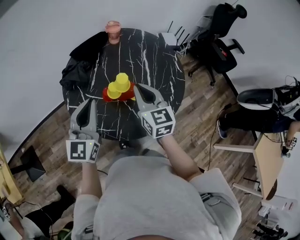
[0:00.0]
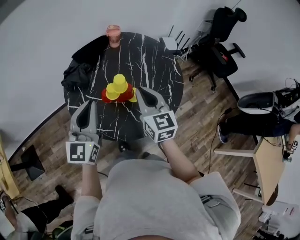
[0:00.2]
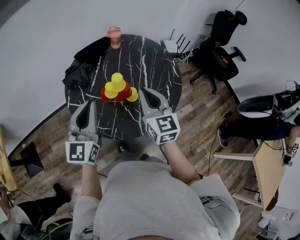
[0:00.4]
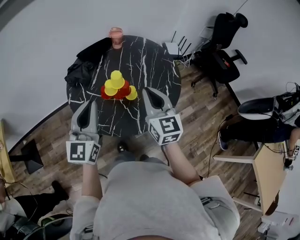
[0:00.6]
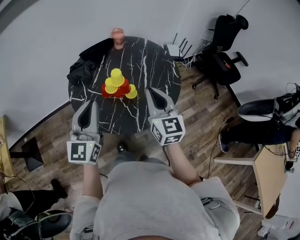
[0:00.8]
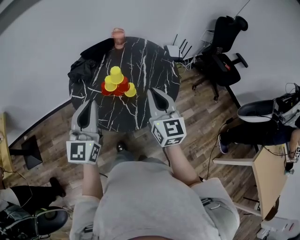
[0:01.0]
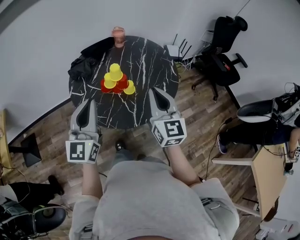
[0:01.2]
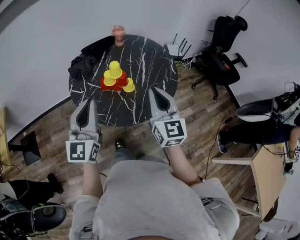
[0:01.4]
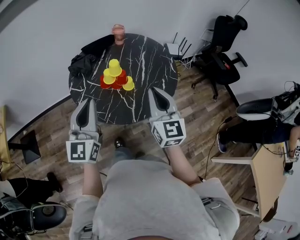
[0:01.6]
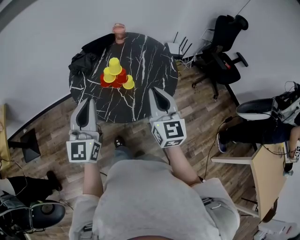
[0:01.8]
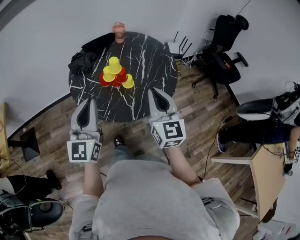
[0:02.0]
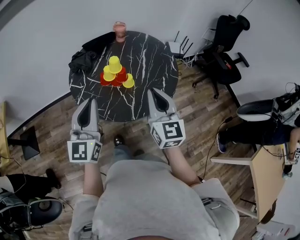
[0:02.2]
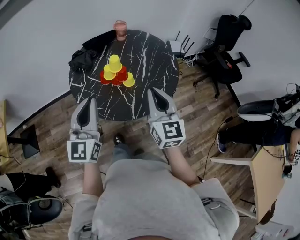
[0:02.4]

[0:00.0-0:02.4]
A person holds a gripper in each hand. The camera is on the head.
0:00.0 to 0:01.2: The right gripper moves backward, to the right and upward, roughly 20 cm. The left gripper goes some 15 cm backward and upward.
0:01.2 to 0:02.4: The grippers move only a little.

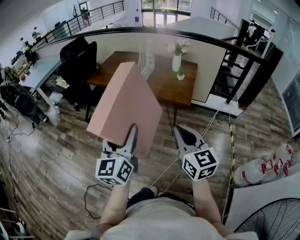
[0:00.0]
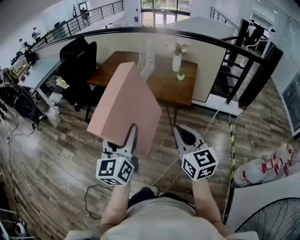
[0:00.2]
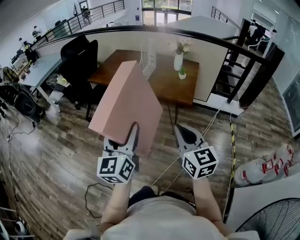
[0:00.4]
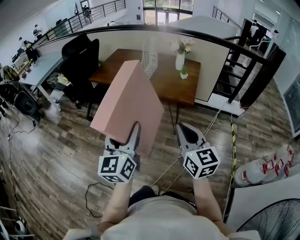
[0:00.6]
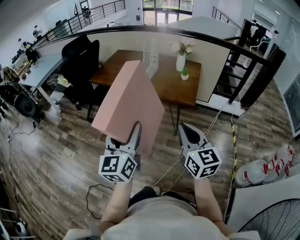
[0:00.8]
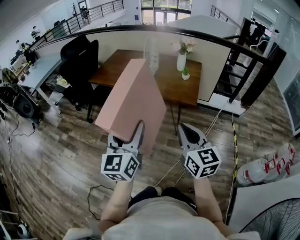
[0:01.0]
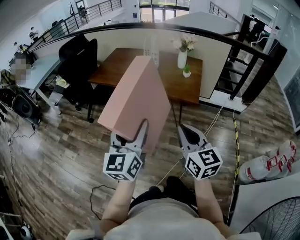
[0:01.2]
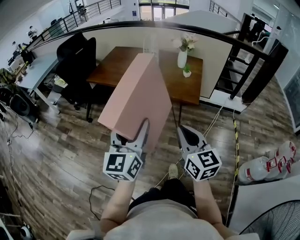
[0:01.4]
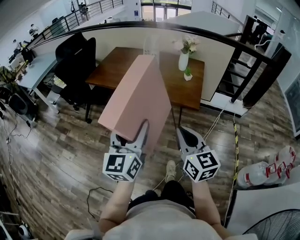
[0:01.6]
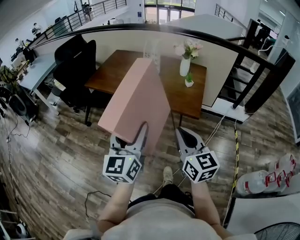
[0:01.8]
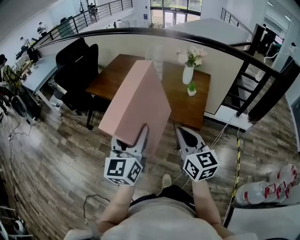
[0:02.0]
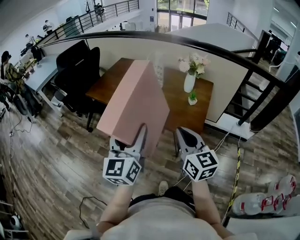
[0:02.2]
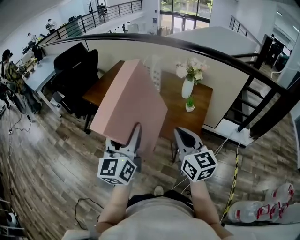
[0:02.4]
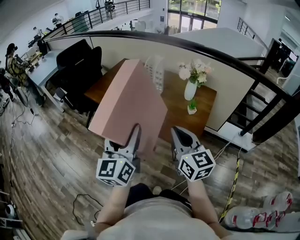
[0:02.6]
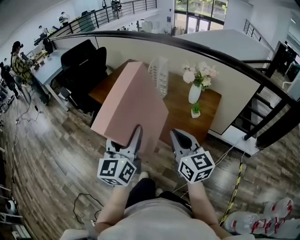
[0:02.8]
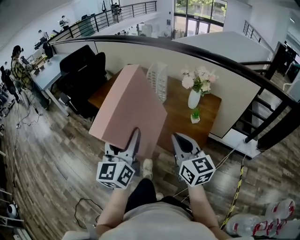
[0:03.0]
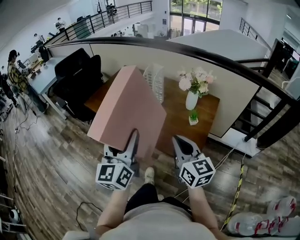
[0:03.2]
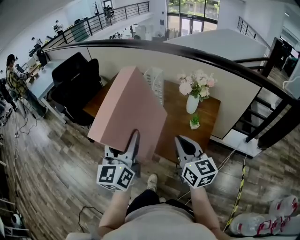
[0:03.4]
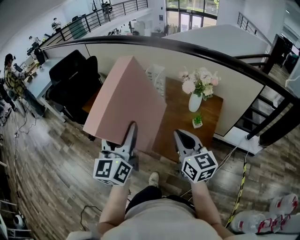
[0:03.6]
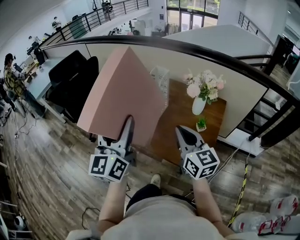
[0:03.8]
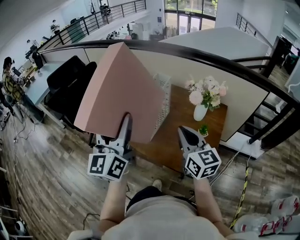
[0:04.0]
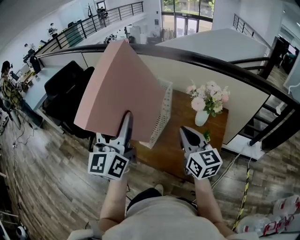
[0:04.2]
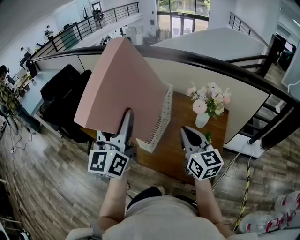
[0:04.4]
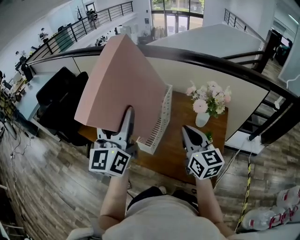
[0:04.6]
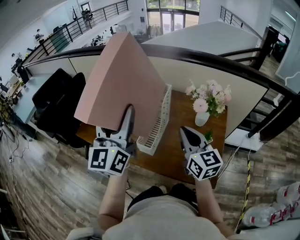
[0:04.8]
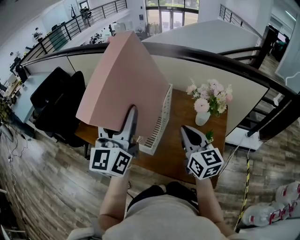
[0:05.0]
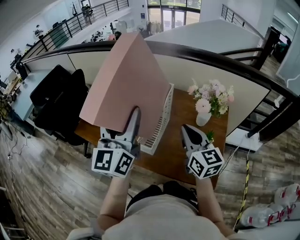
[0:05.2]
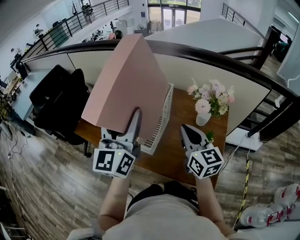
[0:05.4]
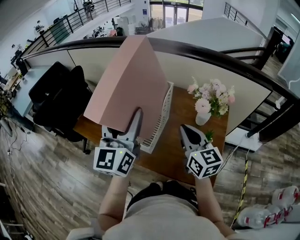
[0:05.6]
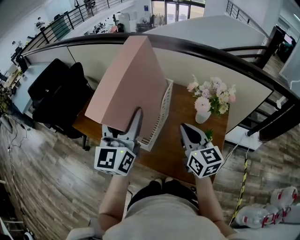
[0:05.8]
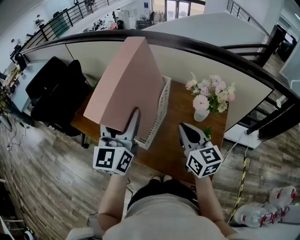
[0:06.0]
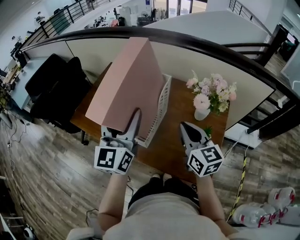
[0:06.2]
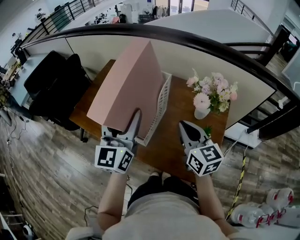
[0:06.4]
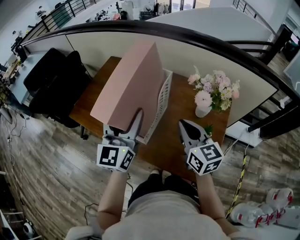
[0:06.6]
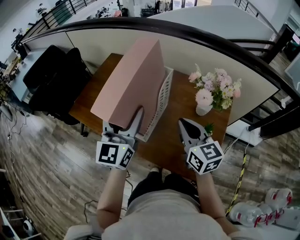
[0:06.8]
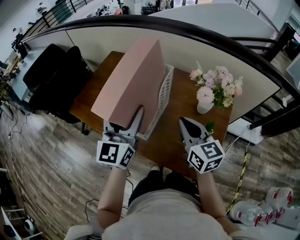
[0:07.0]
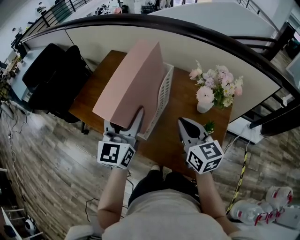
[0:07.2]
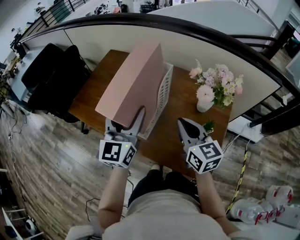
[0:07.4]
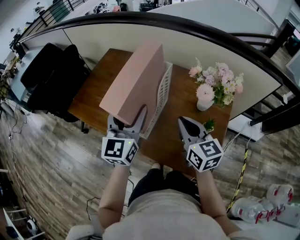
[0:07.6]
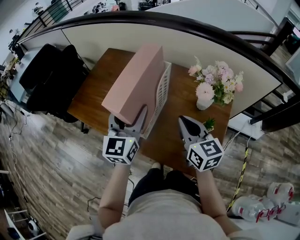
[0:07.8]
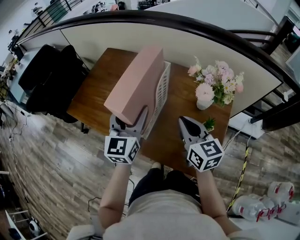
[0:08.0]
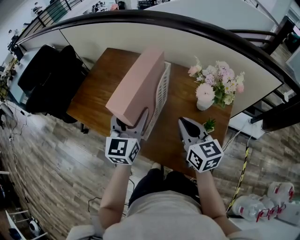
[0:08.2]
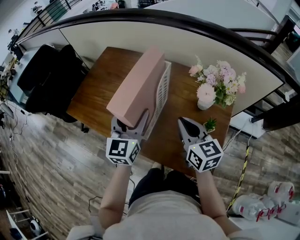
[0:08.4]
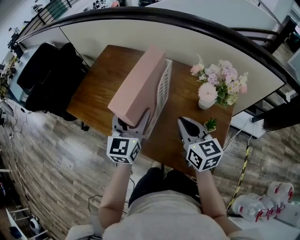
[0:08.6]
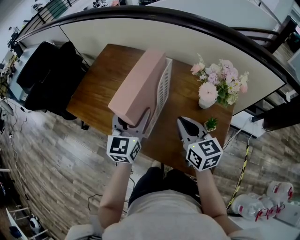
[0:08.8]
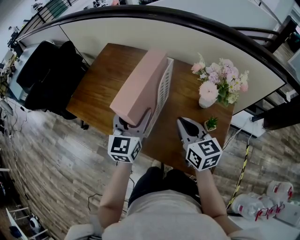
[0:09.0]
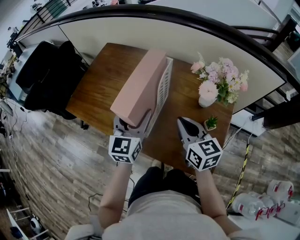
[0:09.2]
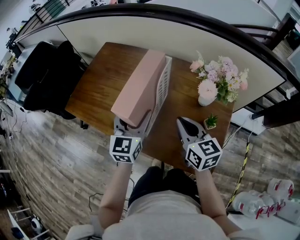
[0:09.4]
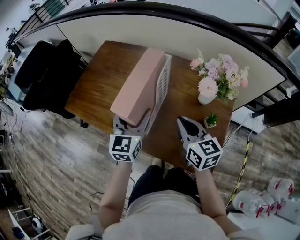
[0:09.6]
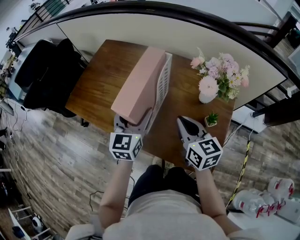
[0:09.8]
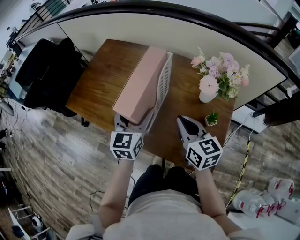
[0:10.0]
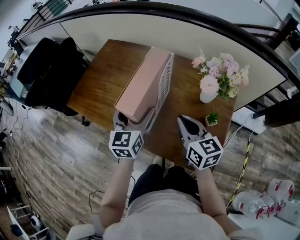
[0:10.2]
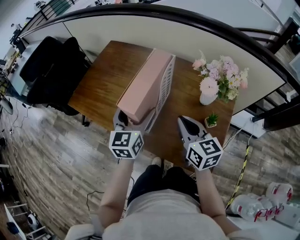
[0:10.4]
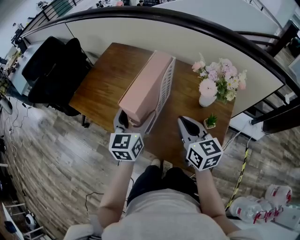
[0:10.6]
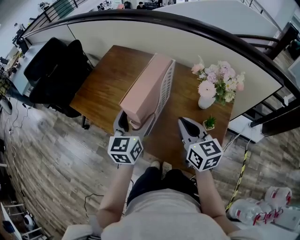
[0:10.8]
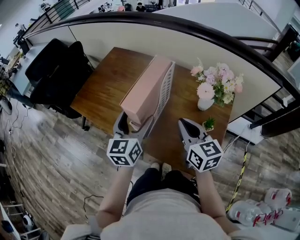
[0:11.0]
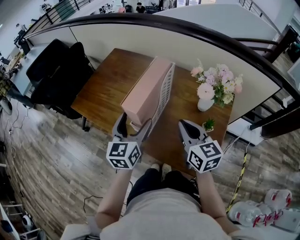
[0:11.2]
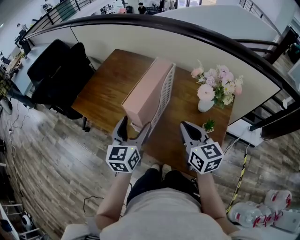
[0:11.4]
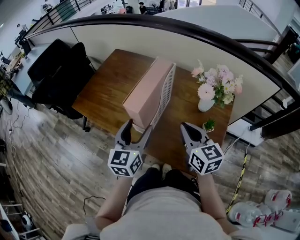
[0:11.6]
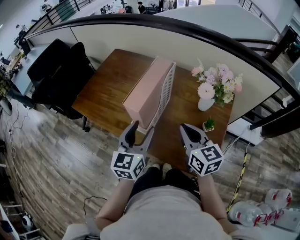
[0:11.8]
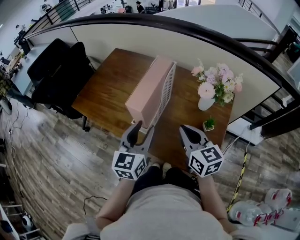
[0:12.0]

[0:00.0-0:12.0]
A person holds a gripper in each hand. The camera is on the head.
0:00.0 to 0:01.6: The grippers both shift forward by some 10 cm.
0:01.6 to 0:03.0: Both grippers travel together forward and to the right, some 25 cm.
0:03.0 to 0:04.4: The grippers both shift forward by approximately 25 cm.
0:04.4 to 0:06.0: The right gripper shifts by approximately 5 cm, while the left gripper heads forward and downward, covering some 10 cm.
0:06.0 to 0:07.6: The left gripper is displaced downward by roughly 10 cm.
0:07.6 to 0:09.0: The left gripper goes some 5 cm downward.
0:09.0 to 0:10.4: The grippers make only small movements.
0:10.4 to 0:12.0: The left gripper shifts about 10 cm backward, and closes up.

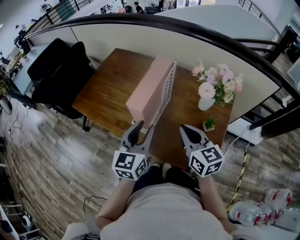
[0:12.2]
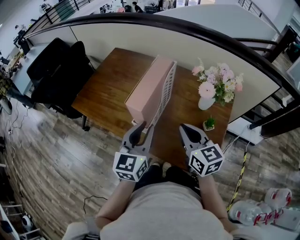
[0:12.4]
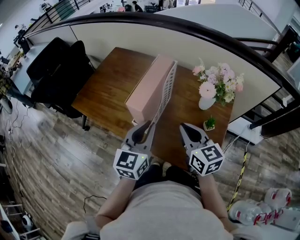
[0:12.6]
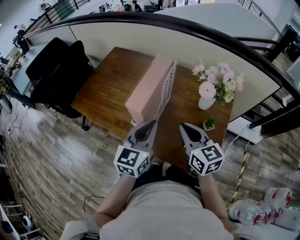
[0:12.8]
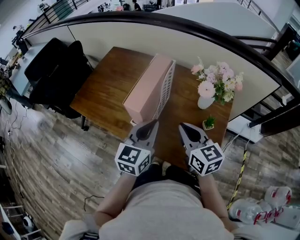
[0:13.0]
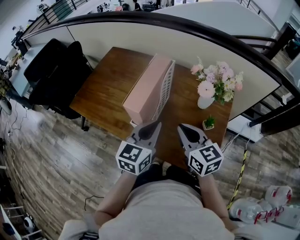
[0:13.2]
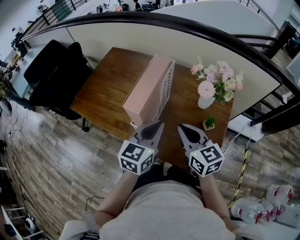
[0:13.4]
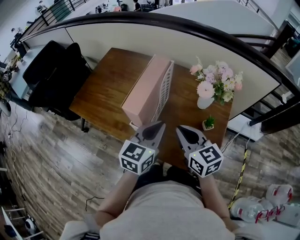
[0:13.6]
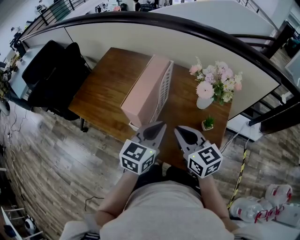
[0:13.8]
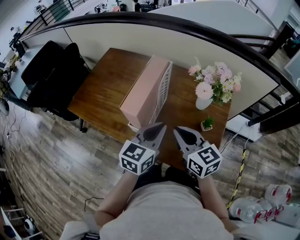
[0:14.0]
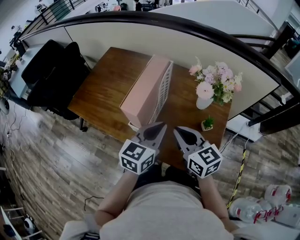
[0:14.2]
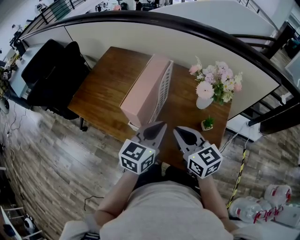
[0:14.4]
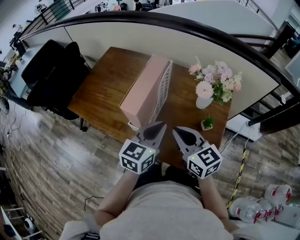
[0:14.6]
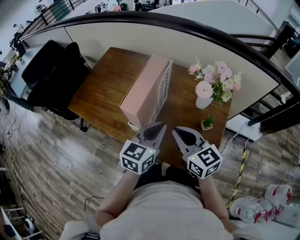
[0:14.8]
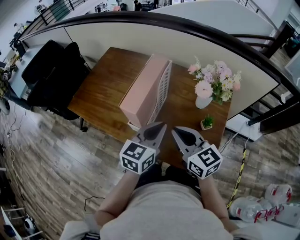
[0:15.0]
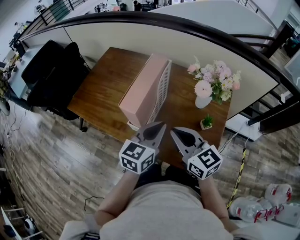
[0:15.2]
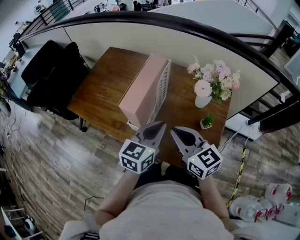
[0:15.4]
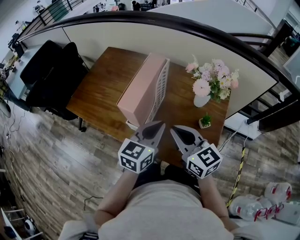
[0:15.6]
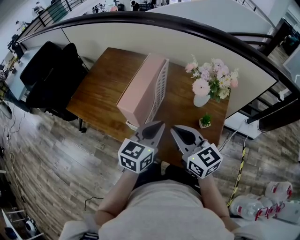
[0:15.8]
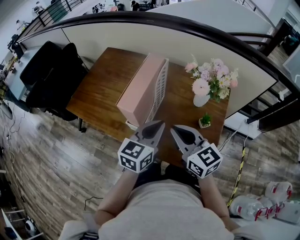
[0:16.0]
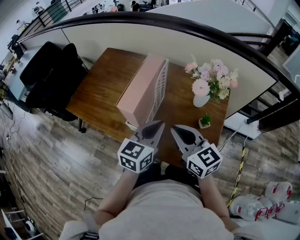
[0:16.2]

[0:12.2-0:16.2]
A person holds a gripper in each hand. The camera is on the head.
0:12.2 to 0:13.6: The left gripper goes roughly 5 cm to the right.
0:13.6 to 0:14.8: There are only small adjustments of the grippers.
0:14.8 to 0:16.2: Both grippers stay about where they are.

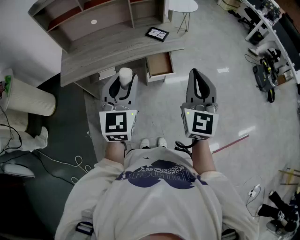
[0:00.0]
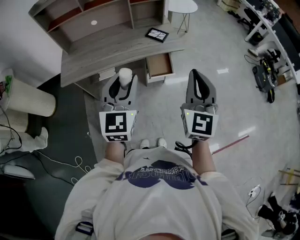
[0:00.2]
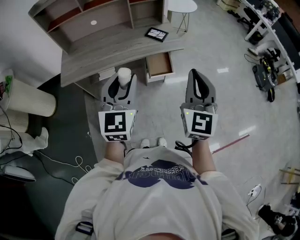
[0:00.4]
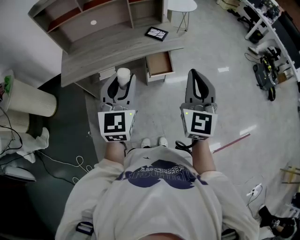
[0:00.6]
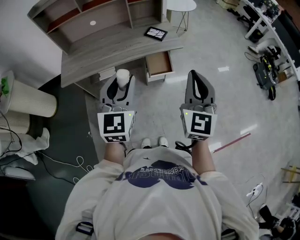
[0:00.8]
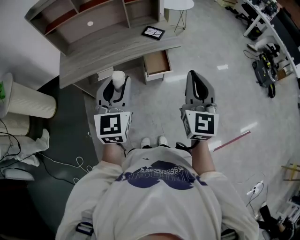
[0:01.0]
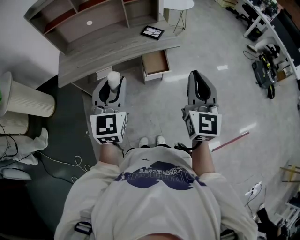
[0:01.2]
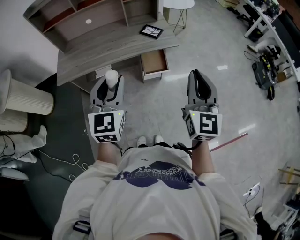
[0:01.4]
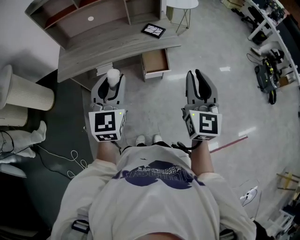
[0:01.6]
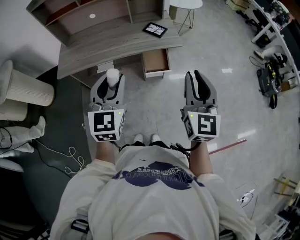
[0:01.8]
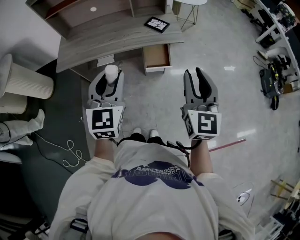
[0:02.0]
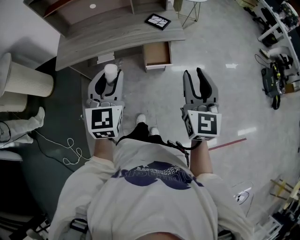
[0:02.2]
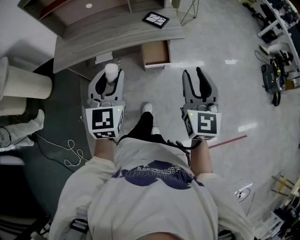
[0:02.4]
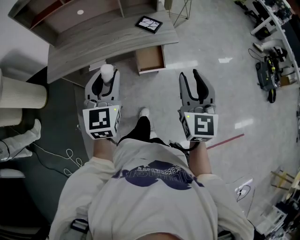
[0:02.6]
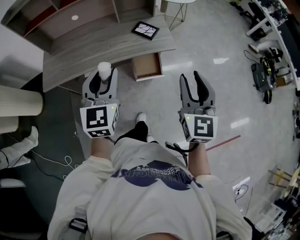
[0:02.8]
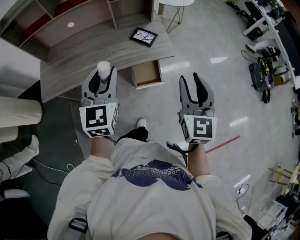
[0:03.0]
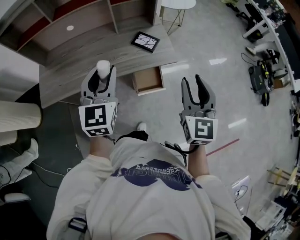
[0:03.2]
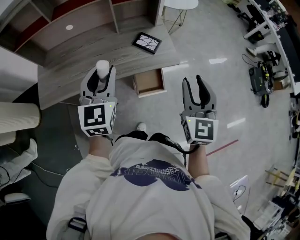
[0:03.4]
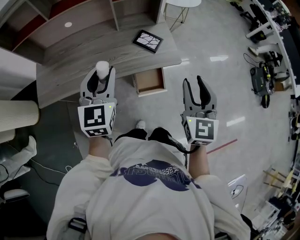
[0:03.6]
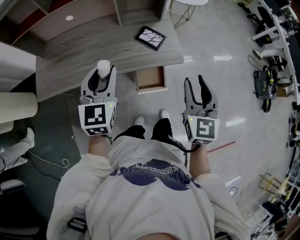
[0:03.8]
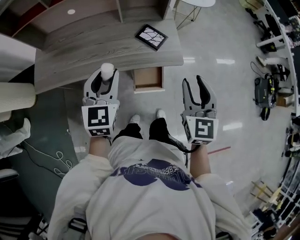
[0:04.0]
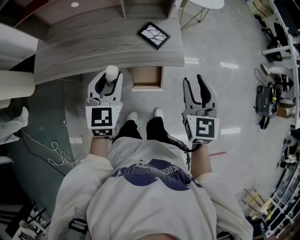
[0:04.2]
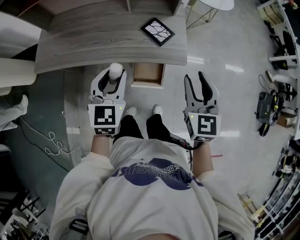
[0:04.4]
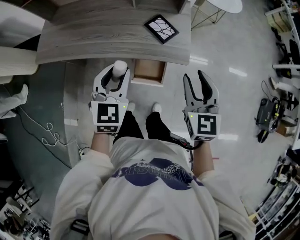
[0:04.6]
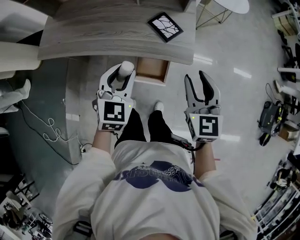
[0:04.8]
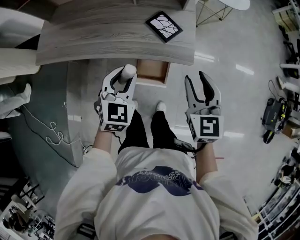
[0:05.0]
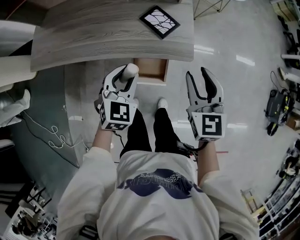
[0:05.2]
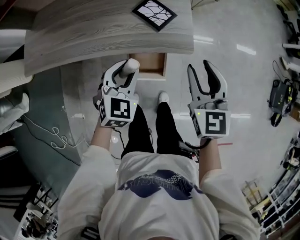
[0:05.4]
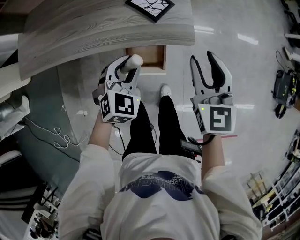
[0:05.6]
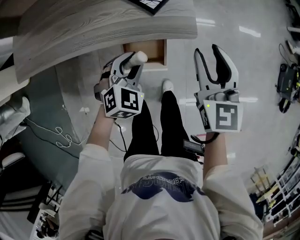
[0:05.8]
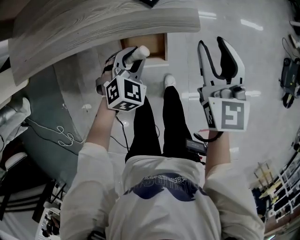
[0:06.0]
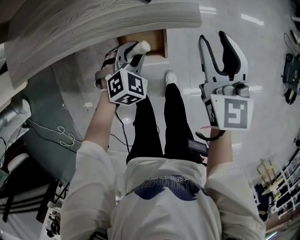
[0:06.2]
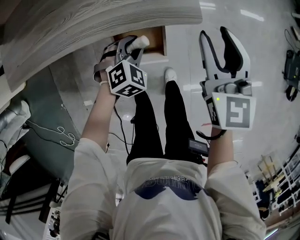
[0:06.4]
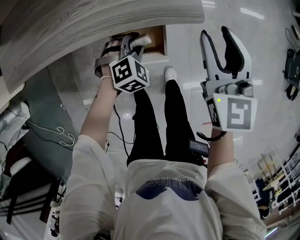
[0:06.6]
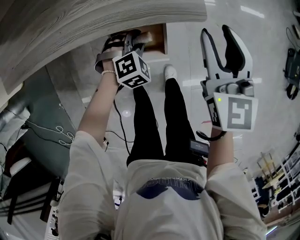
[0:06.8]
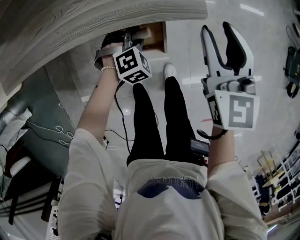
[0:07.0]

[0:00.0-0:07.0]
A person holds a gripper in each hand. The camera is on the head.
0:00.0 to 0:01.4: The grippers move only a little.
0:01.4 to 0:02.8: The left gripper moves forward, some 15 cm; the right gripper goes approximately 15 cm forward and downward, and opens its fingers.
0:02.8 to 0:04.2: The right gripper travels forward by approximately 20 cm. The left gripper shifts approximately 15 cm forward and downward.
0:04.2 to 0:05.6: The right gripper travels downward and forward by some 15 cm. The left gripper is displaced downward and to the right by some 25 cm, and turns by roughly 30 degrees.
0:05.6 to 0:07.0: The right gripper goes approximately 10 cm downward. The left gripper shifts roughly 20 cm downward, and changes its angle by roughly 30 degrees.
